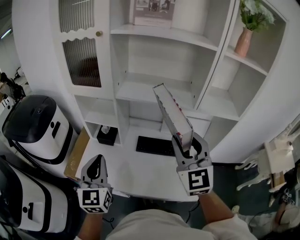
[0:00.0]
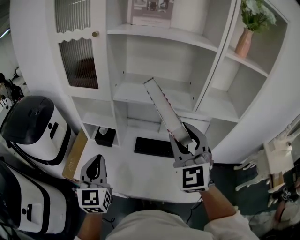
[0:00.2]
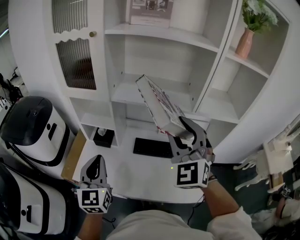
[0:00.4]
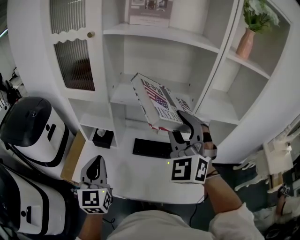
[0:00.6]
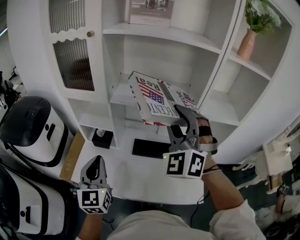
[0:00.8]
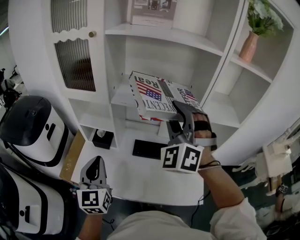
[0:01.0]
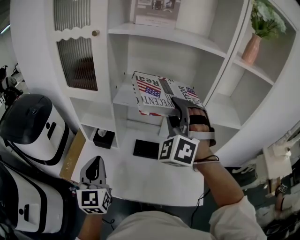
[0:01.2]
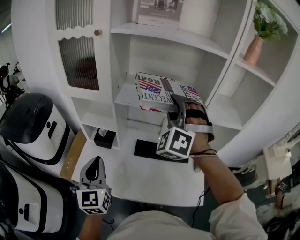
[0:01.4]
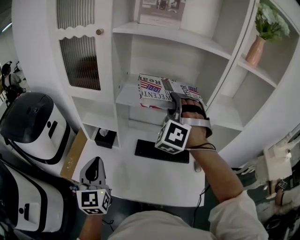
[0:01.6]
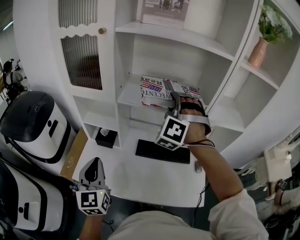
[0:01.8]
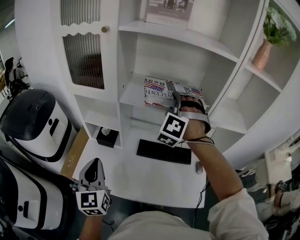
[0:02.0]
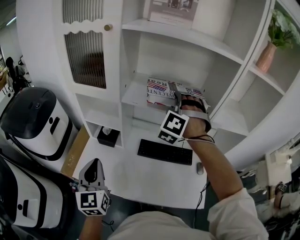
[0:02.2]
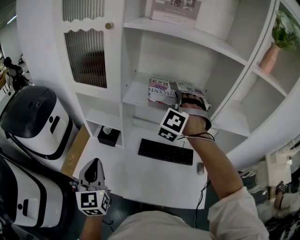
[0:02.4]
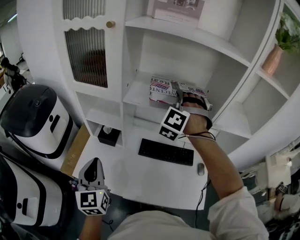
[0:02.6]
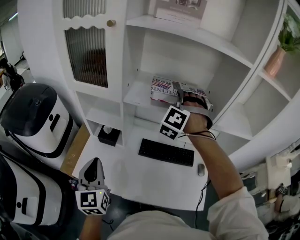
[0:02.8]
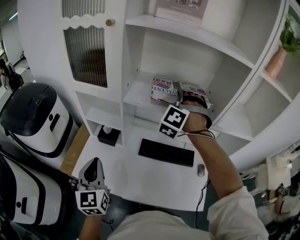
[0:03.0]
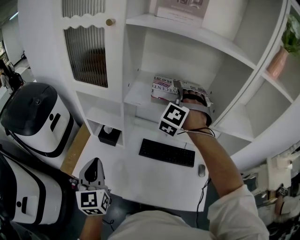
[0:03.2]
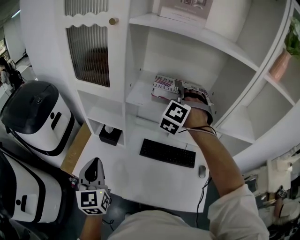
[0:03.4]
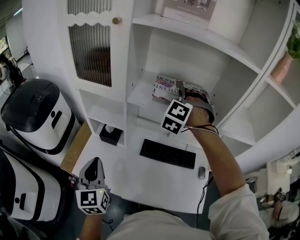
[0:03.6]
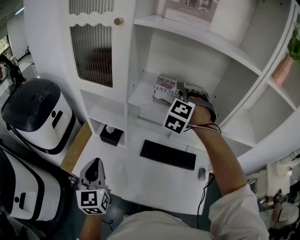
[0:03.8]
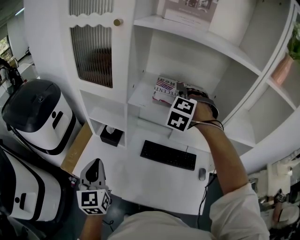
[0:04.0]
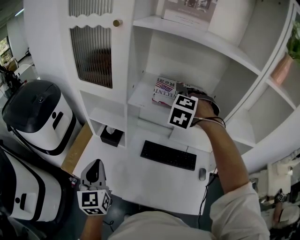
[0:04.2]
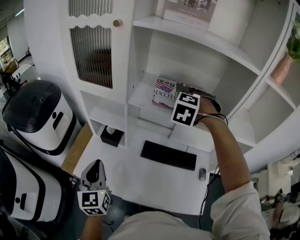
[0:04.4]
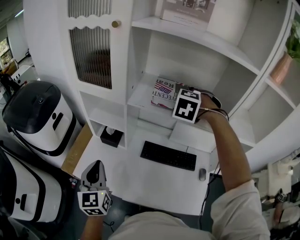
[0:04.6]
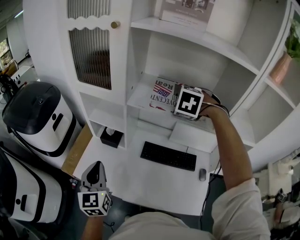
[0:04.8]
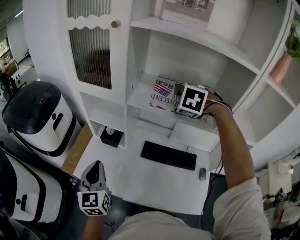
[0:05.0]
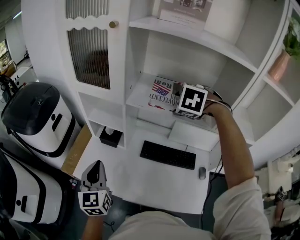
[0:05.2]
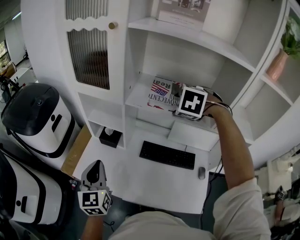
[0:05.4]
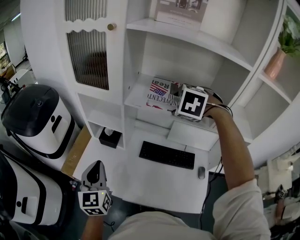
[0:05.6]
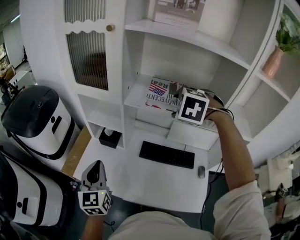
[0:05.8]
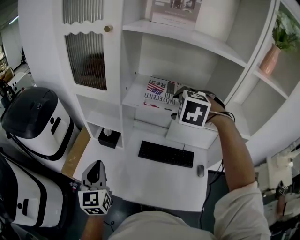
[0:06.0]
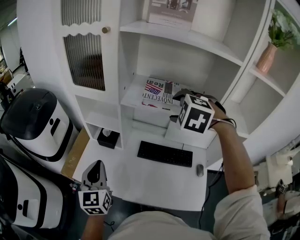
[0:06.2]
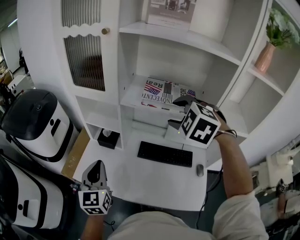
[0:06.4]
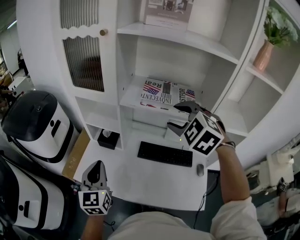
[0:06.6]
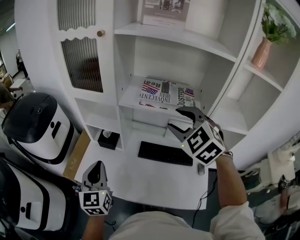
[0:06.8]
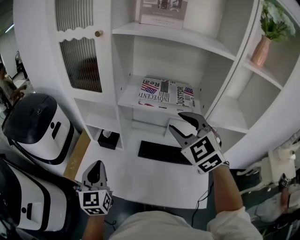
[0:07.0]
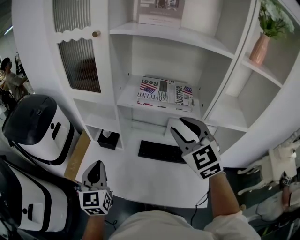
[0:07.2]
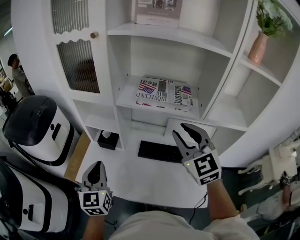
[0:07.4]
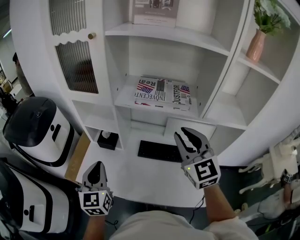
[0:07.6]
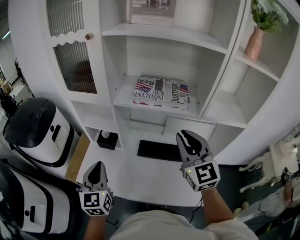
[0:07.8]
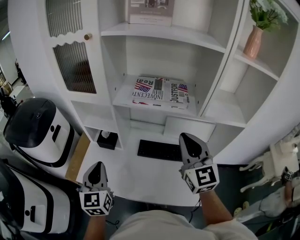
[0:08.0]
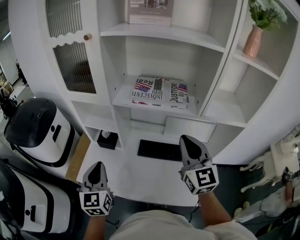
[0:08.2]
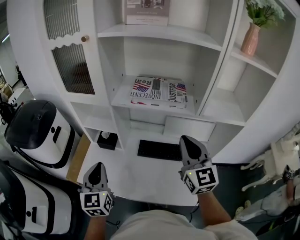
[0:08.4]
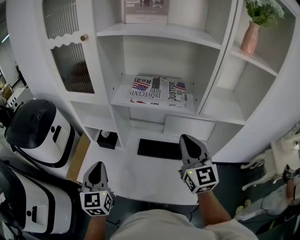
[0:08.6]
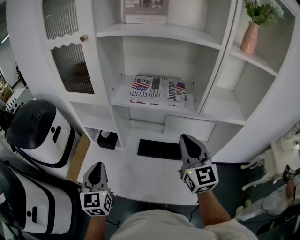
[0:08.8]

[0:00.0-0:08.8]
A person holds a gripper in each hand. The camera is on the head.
0:00.0 to 0:01.4: The right gripper goes about 15 cm forward, and twists some 50 degrees counterclockwise, seen from behind.
0:01.4 to 0:03.0: The right gripper heads forward and downward, covering about 15 cm, and swivels approximately 20 degrees. Meanwhile the left gripper shifts by some 5 cm.
0:03.0 to 0:04.4: The right gripper turns by about 30 degrees, and opens its fingers.
0:04.4 to 0:05.8: The right gripper travels backward by some 5 cm.
0:05.8 to 0:07.4: The right gripper travels backward by about 15 cm, tilts its fingers roughly 50 degrees upward, and closes up.
0:07.4 to 0:08.8: The right gripper changes place by about 5 cm, changes its angle by roughly 20 degrees, and closes up.

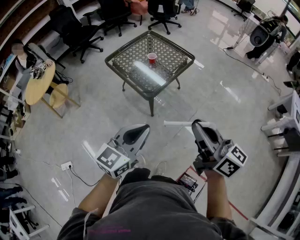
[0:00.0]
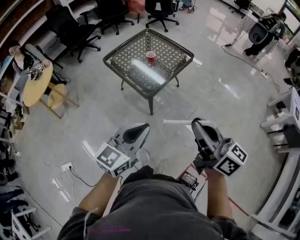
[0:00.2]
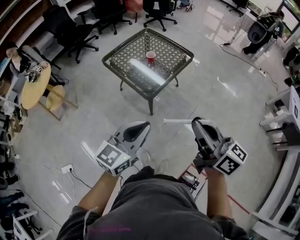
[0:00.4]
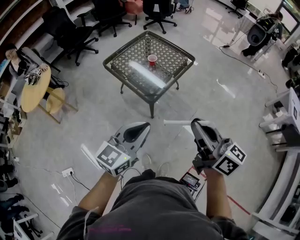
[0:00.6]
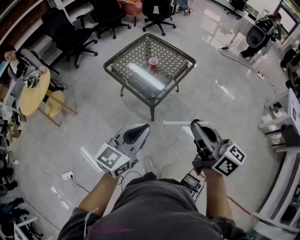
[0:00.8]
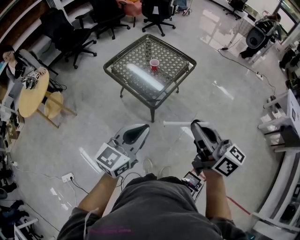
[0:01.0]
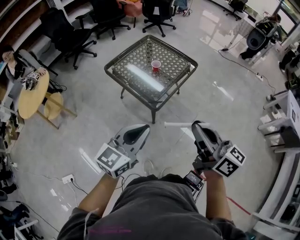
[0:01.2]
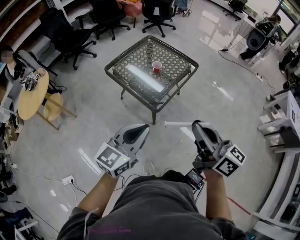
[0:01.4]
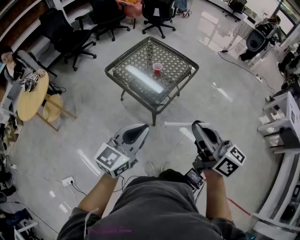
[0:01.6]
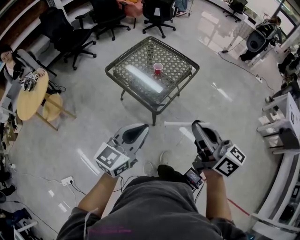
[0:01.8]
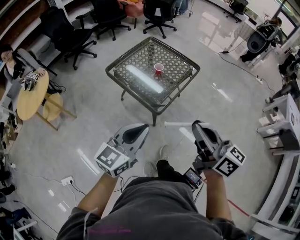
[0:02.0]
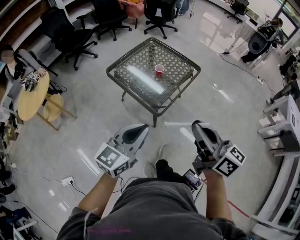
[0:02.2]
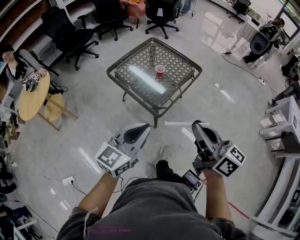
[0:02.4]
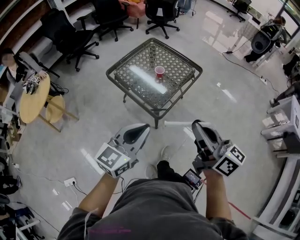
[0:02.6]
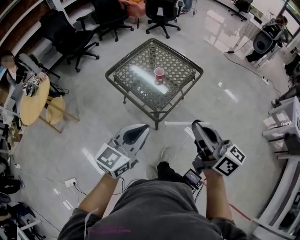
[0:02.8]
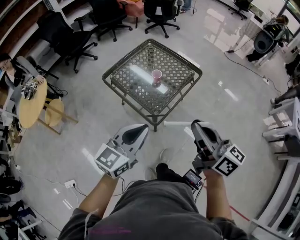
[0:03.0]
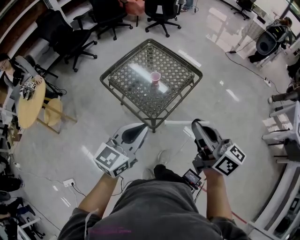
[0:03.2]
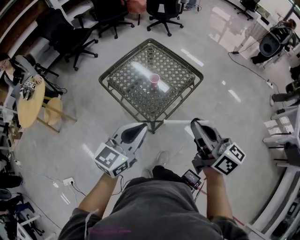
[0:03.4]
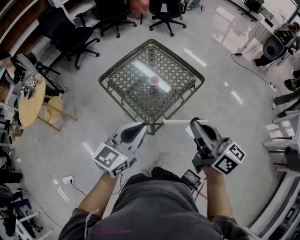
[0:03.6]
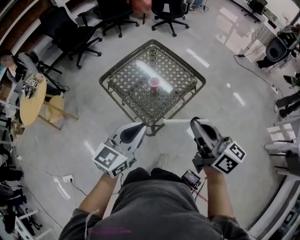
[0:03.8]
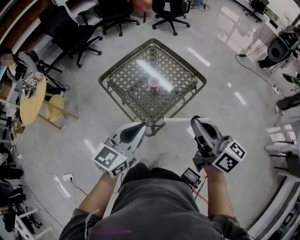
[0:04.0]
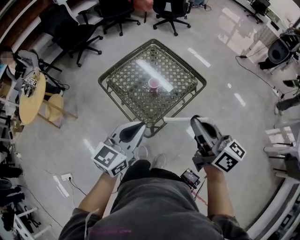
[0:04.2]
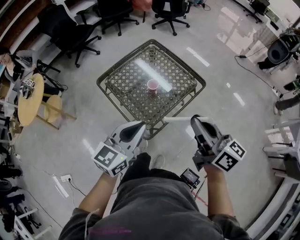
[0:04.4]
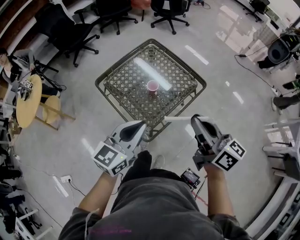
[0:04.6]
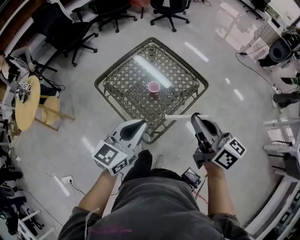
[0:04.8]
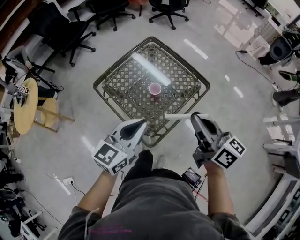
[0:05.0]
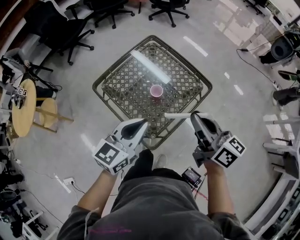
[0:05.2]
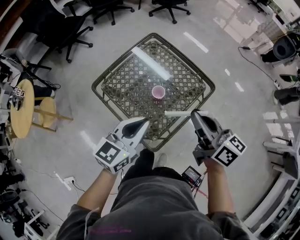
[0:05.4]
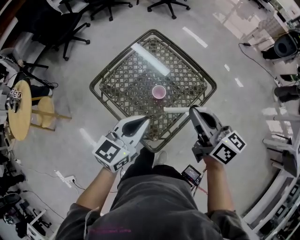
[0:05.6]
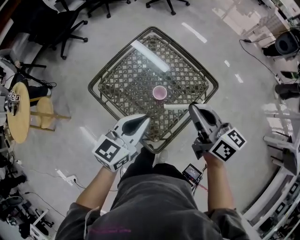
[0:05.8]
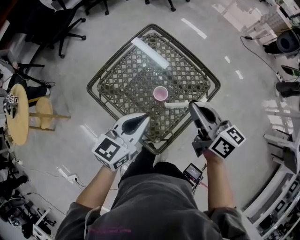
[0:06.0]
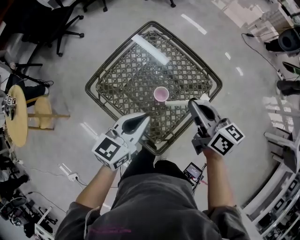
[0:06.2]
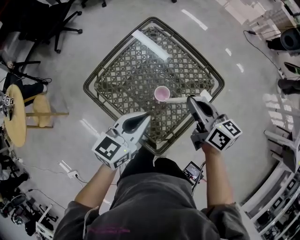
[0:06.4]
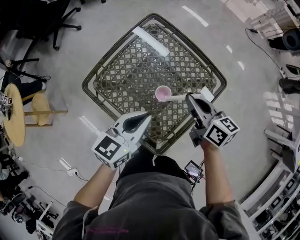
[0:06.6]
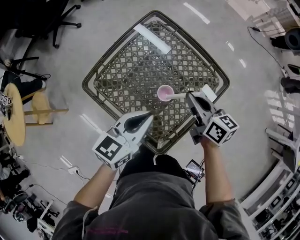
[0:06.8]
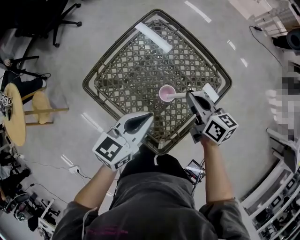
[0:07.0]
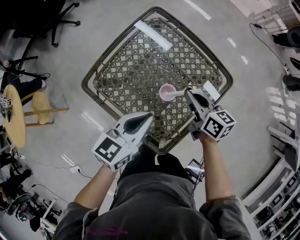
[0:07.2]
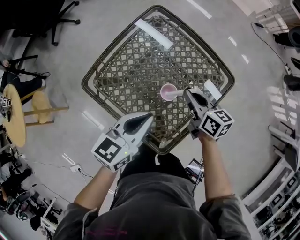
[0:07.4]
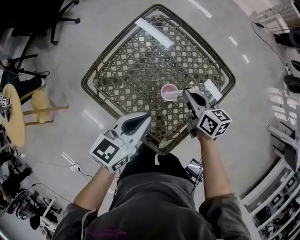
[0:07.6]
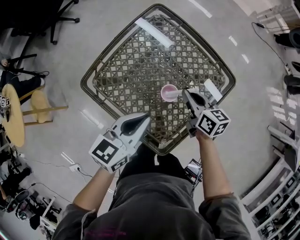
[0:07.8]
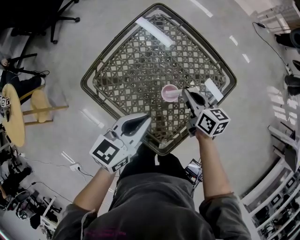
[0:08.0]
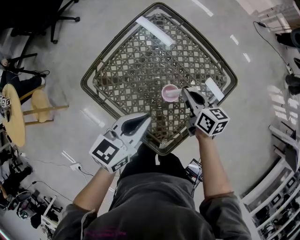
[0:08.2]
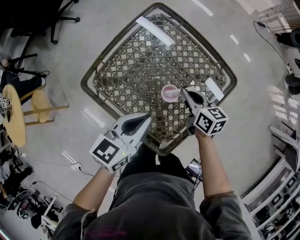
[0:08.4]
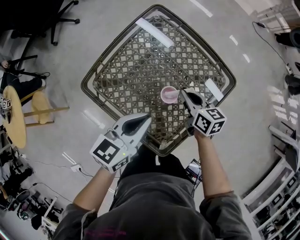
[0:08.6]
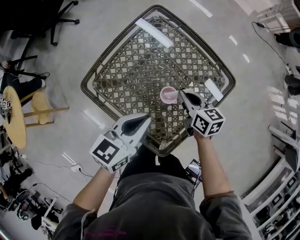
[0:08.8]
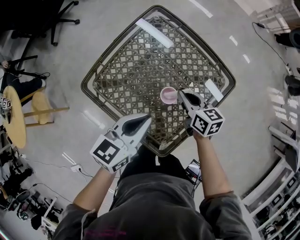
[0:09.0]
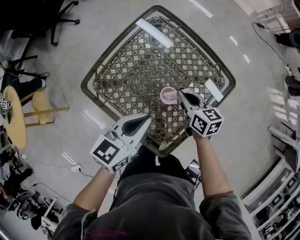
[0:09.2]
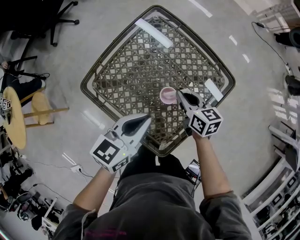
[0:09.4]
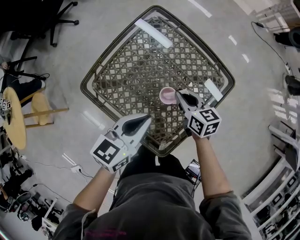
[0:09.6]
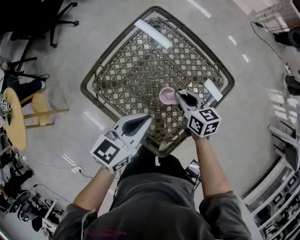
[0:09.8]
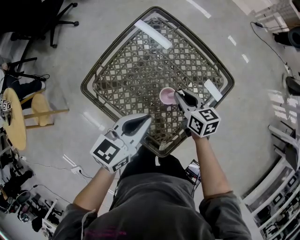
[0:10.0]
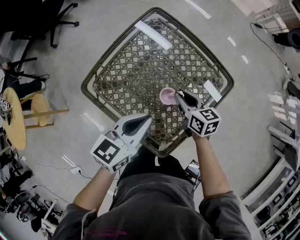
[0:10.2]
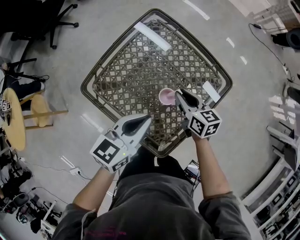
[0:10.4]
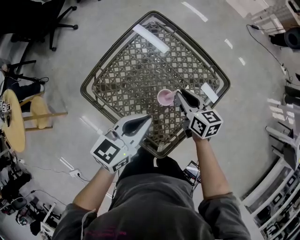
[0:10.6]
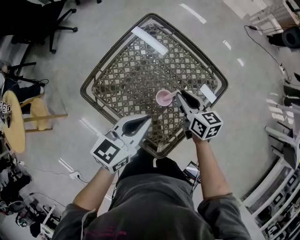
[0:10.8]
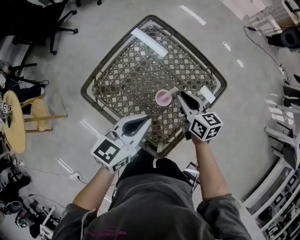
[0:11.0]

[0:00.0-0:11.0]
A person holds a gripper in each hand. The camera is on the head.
0:00.0 to 0:01.6: The grippers both shift to the left and forward by roughly 15 cm.
0:01.6 to 0:03.2: The grippers both shift forward by about 15 cm.
0:03.2 to 0:04.8: Both grippers move forward, roughly 15 cm.
0:04.8 to 0:06.2: Both grippers travel together forward and downward, approximately 20 cm.
0:06.2 to 0:07.8: The right gripper is displaced downward by some 20 cm, while the left gripper heads downward, covering roughly 5 cm.
0:07.8 to 0:11.0: There are only small adjustments of the grippers.

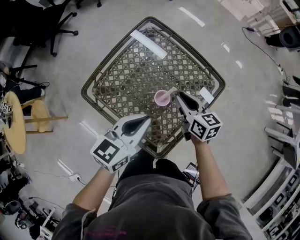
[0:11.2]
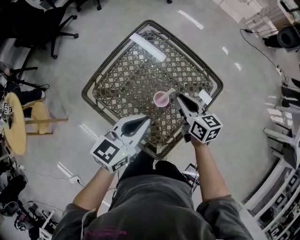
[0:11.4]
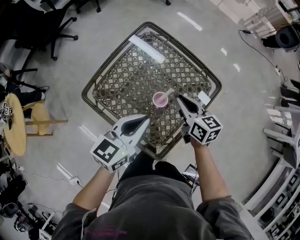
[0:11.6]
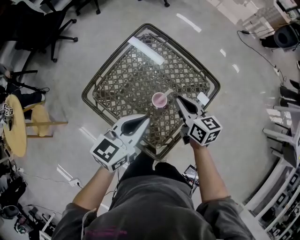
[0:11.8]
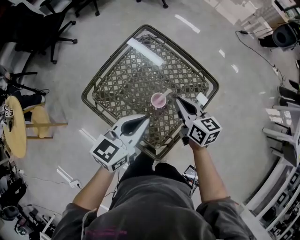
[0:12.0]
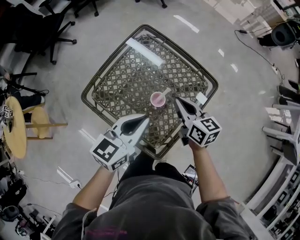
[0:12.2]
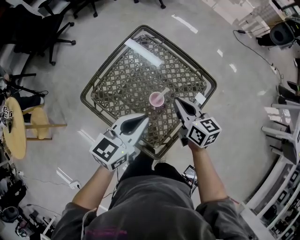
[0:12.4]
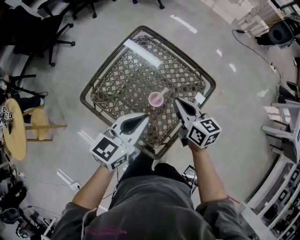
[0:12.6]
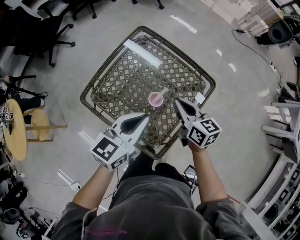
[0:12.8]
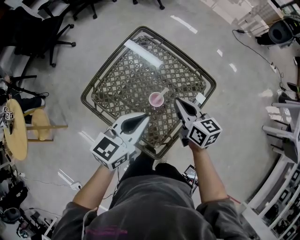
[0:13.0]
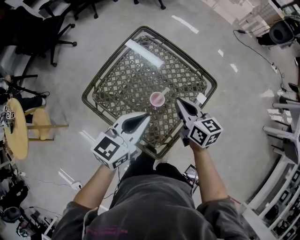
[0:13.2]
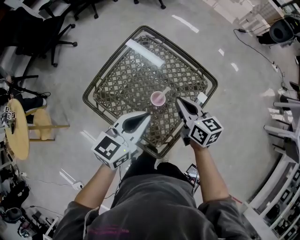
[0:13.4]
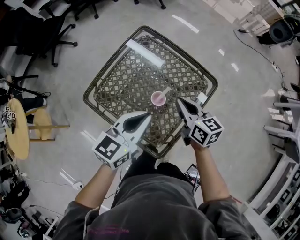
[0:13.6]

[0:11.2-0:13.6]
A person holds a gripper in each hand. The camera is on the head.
0:11.2 to 0:12.4: The right gripper moves upward, some 5 cm.
0:12.4 to 0:13.6: Both grippers stay put.

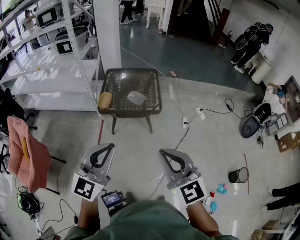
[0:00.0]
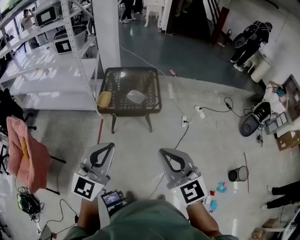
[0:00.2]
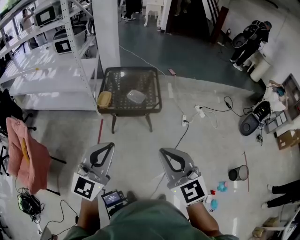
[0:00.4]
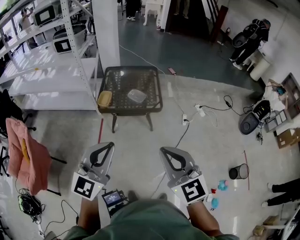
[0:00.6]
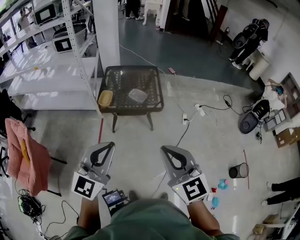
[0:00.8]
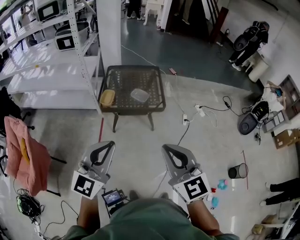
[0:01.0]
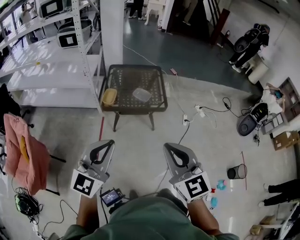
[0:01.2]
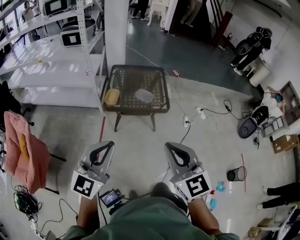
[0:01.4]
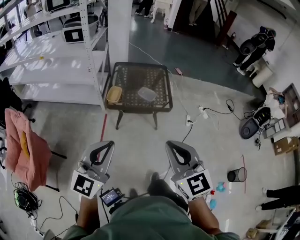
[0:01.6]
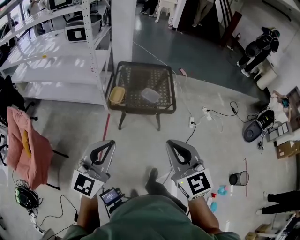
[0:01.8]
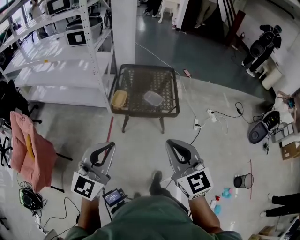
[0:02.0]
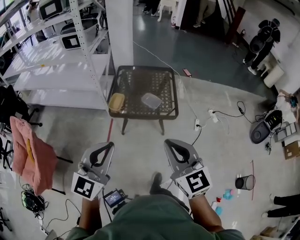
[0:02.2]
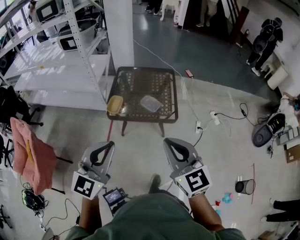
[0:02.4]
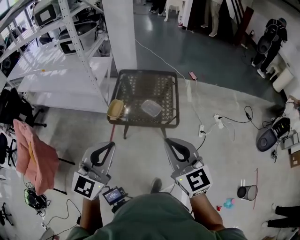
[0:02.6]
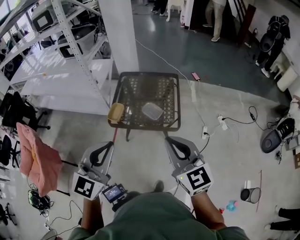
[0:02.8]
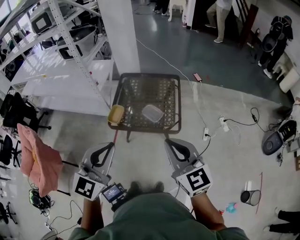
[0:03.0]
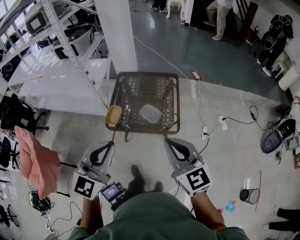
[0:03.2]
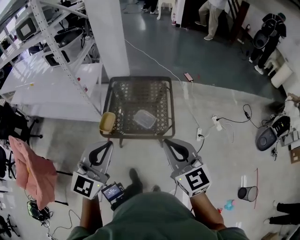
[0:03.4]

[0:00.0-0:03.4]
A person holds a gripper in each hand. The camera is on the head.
0:00.0 to 0:01.6: The two grippers go roughly 15 cm to the left.
0:01.6 to 0:03.4: Both grippers travel together forward, some 35 cm.
